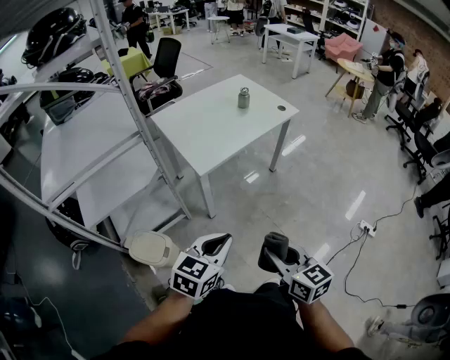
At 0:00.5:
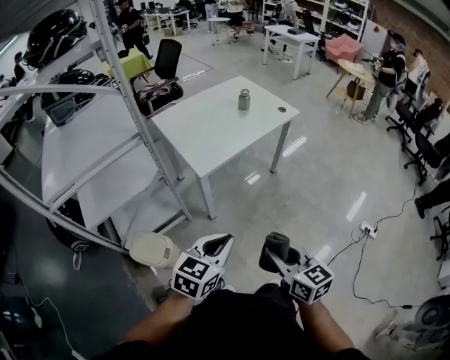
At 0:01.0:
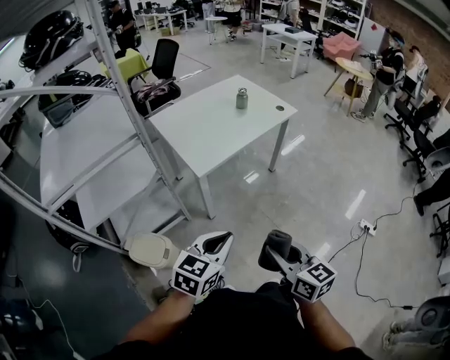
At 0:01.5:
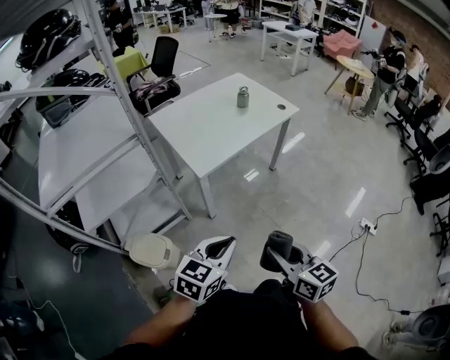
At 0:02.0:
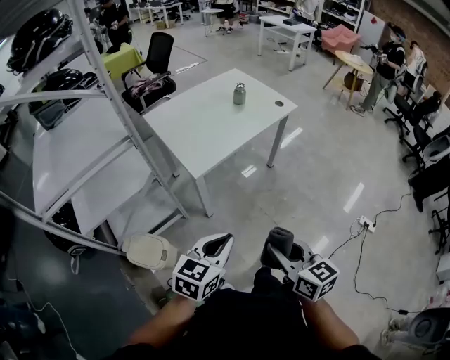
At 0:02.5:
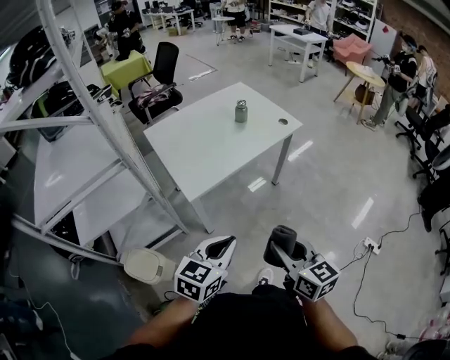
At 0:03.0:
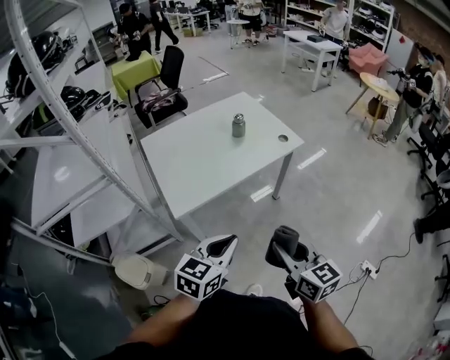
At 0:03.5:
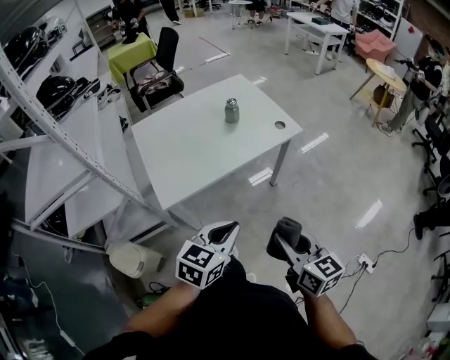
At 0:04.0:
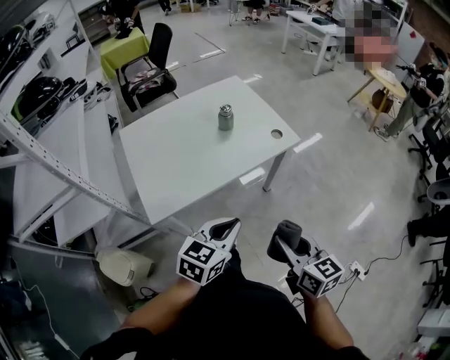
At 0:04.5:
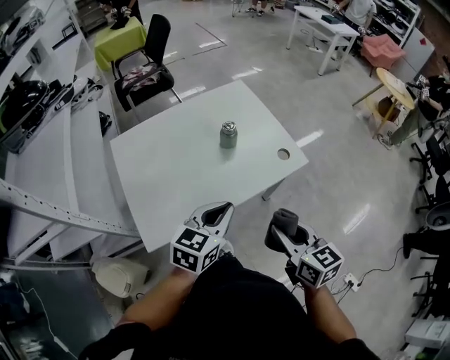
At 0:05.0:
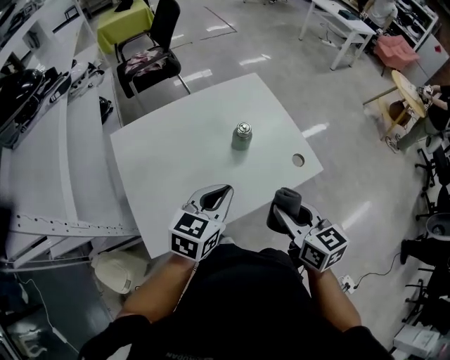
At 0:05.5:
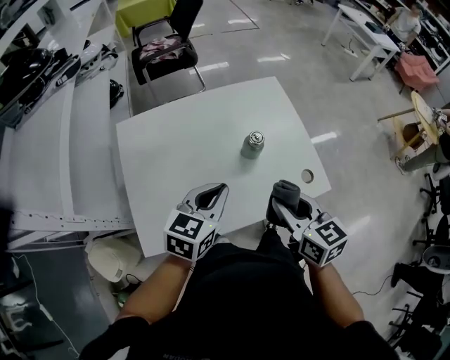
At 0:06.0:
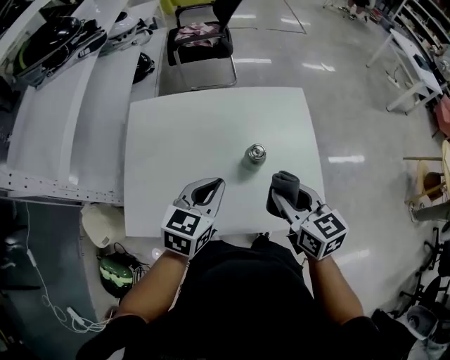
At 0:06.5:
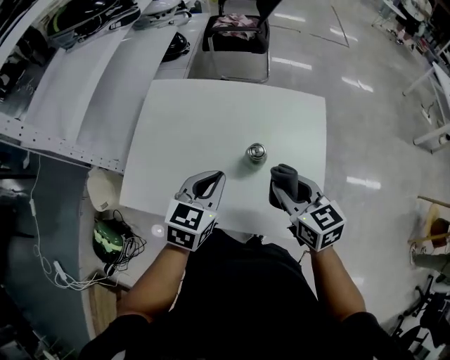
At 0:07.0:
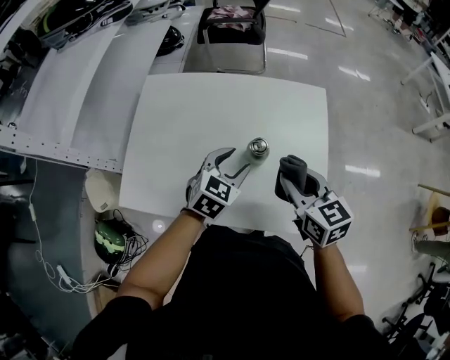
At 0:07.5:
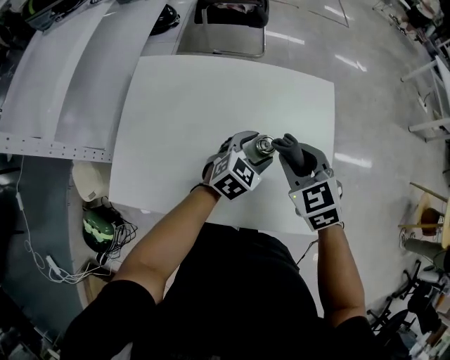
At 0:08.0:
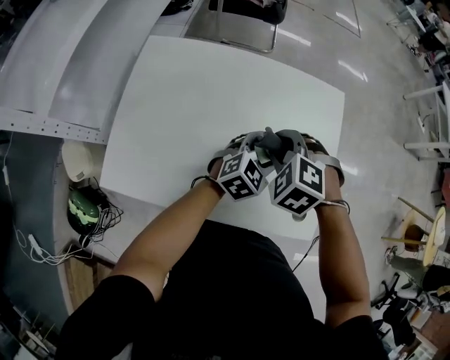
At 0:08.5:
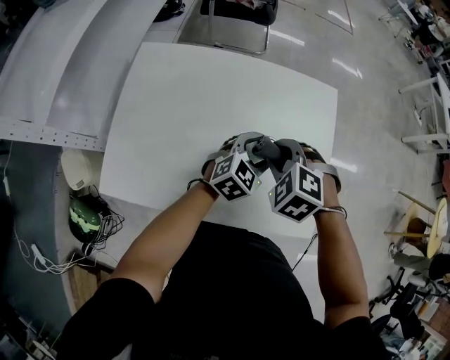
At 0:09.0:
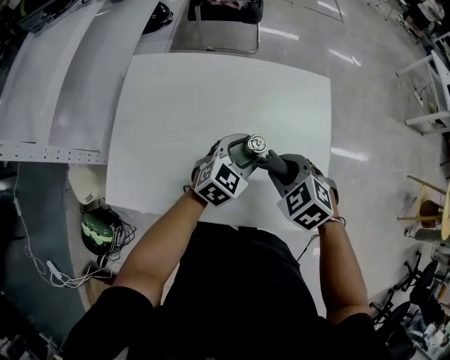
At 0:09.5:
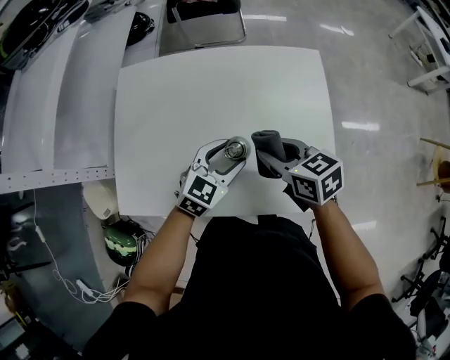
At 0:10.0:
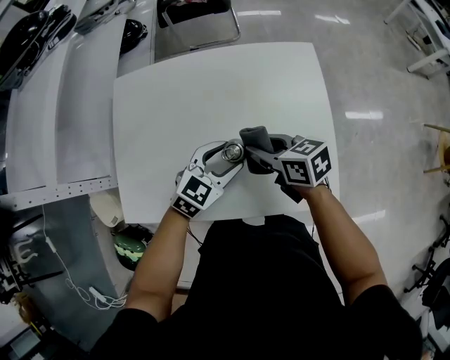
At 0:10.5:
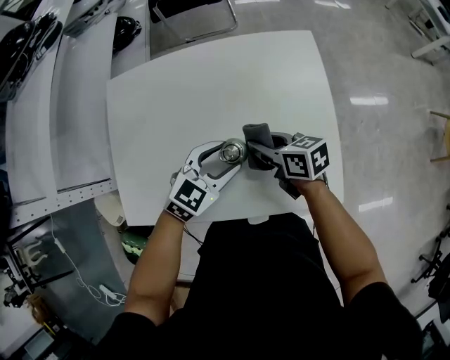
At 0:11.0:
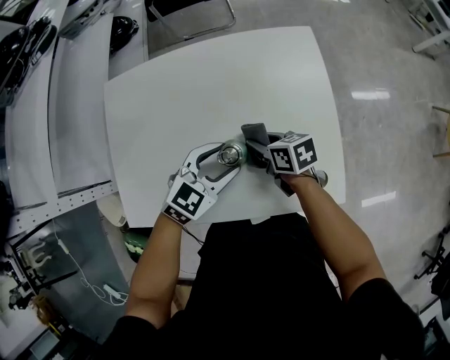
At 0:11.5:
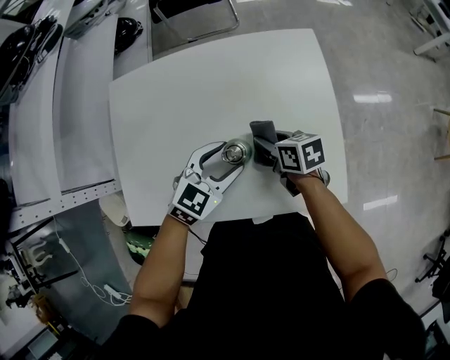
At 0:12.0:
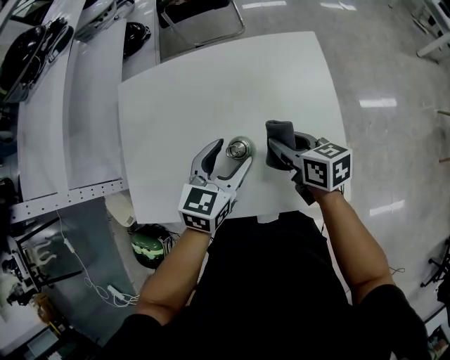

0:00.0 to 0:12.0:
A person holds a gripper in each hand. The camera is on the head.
0:00.0 to 0:02.0: The grippers make only small movements.
0:02.0 to 0:04.0: The grippers both shift forward and to the right by approximately 40 cm.
0:04.0 to 0:06.0: The right gripper moves approximately 50 cm, and swivels roughly 30 degrees. The left gripper moves approximately 40 cm, and changes its angle by about 30 degrees.
0:06.0 to 0:08.0: The right gripper goes approximately 15 cm forward, downward and to the left, and twists some 70 degrees counterclockwise, seen from behind, while the left gripper travels downward, to the right and forward by about 20 cm, and opens.
0:08.0 to 0:10.0: The right gripper twists some 70 degrees clockwise, seen from behind; the left gripper shifts approximately 10 cm to the left and backward.
0:10.0 to 0:12.0: The right gripper goes some 5 cm to the right, and goes downward and returns, roughly 10 cm each way; the left gripper swivels approximately 20 degrees.

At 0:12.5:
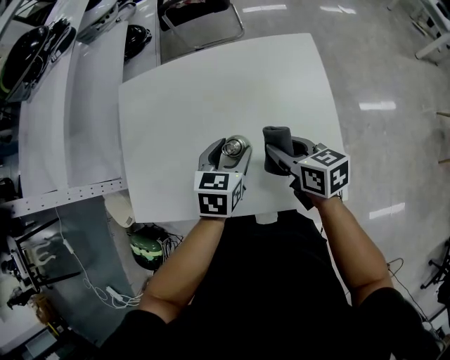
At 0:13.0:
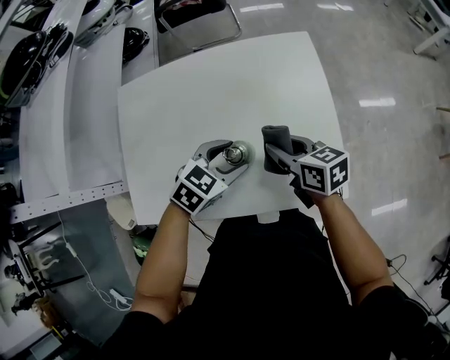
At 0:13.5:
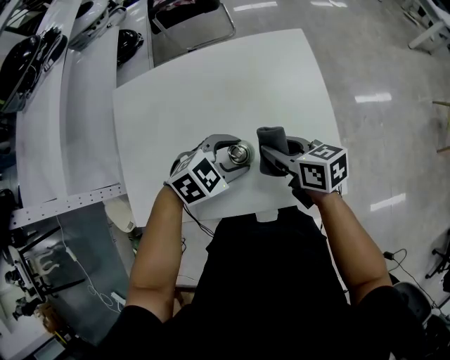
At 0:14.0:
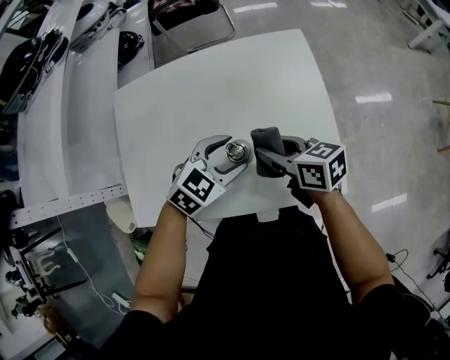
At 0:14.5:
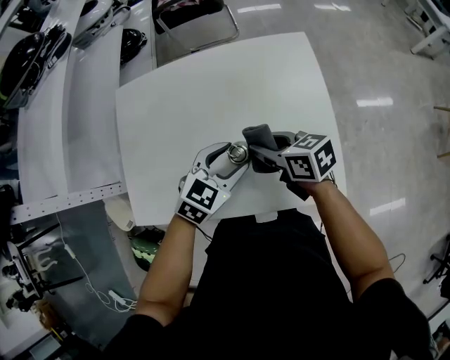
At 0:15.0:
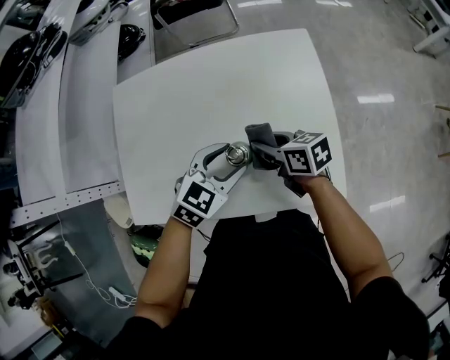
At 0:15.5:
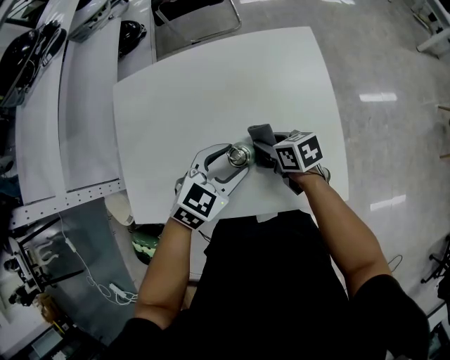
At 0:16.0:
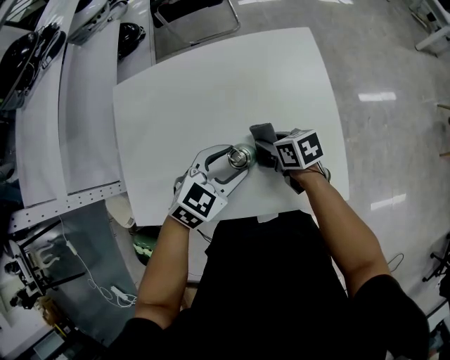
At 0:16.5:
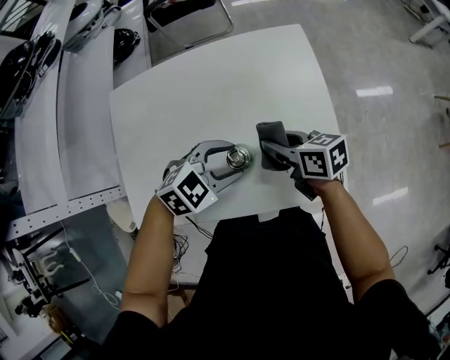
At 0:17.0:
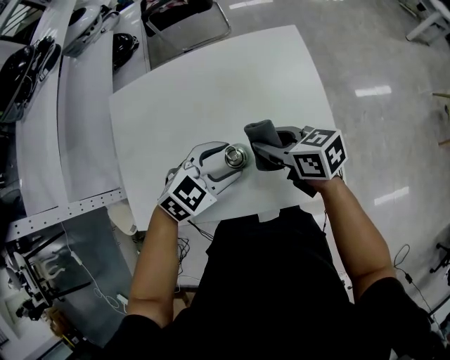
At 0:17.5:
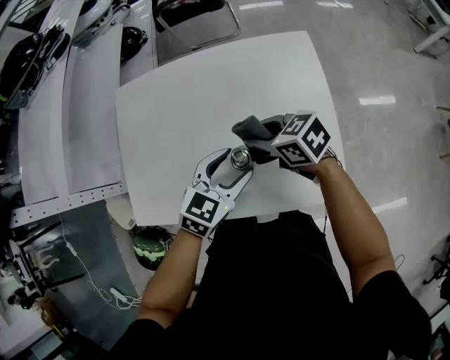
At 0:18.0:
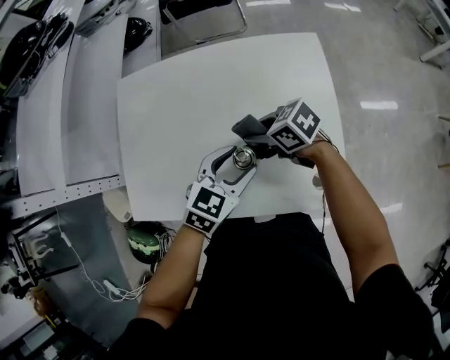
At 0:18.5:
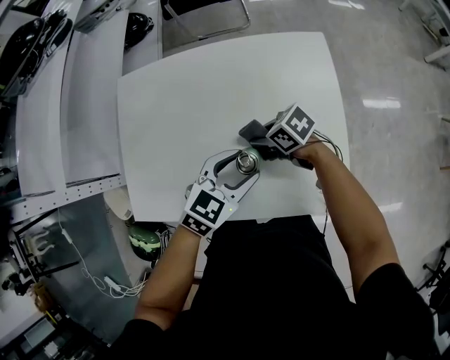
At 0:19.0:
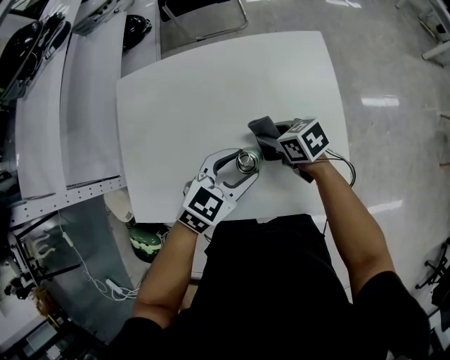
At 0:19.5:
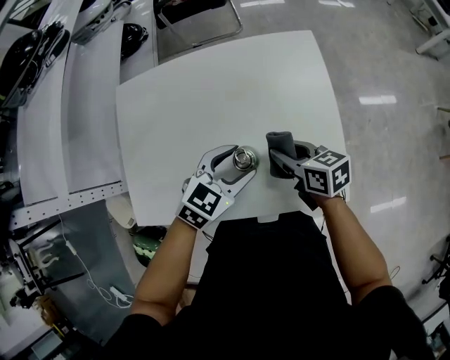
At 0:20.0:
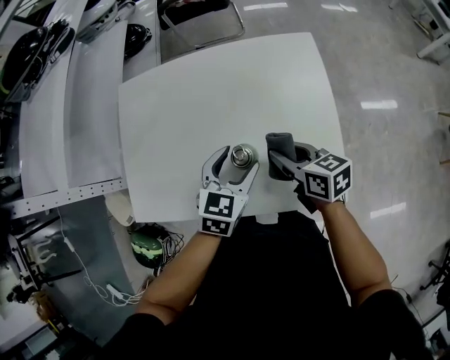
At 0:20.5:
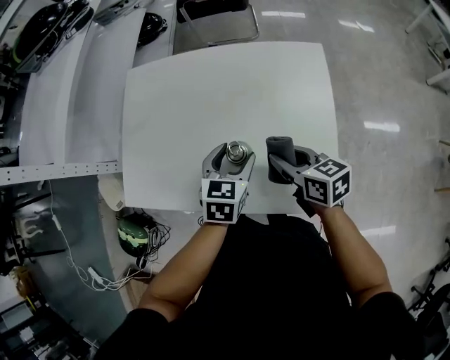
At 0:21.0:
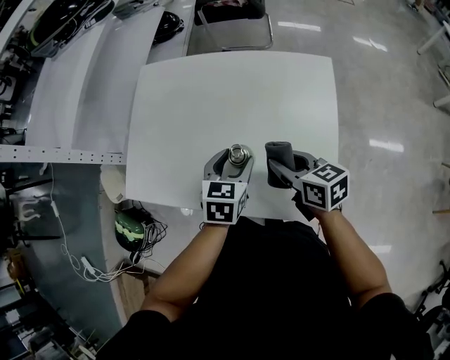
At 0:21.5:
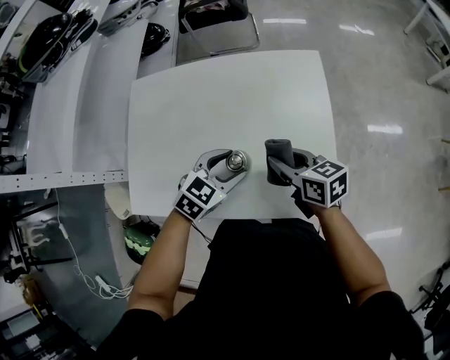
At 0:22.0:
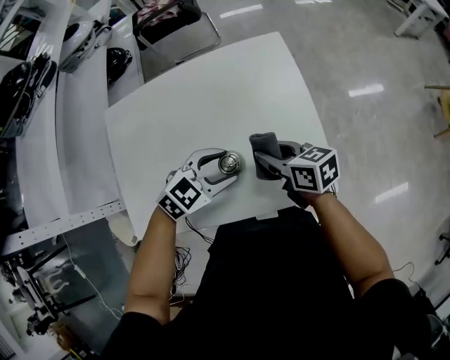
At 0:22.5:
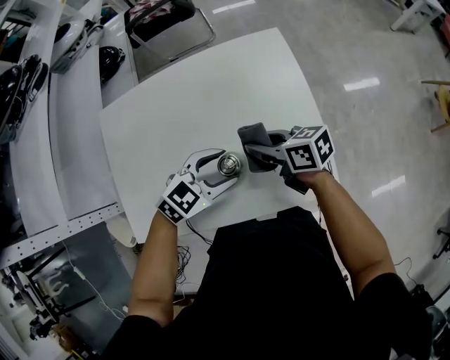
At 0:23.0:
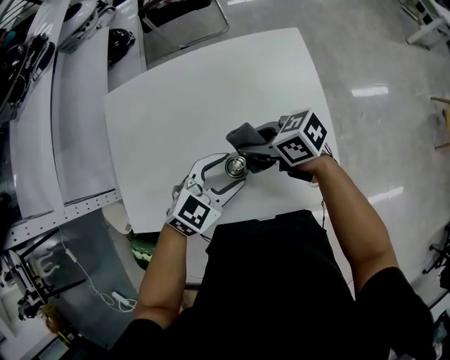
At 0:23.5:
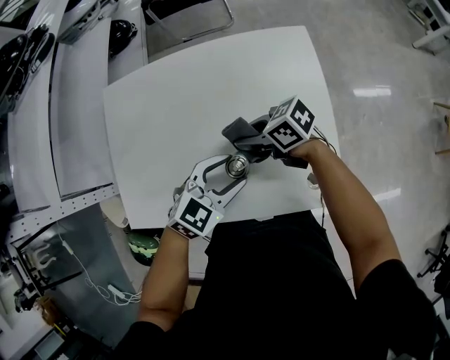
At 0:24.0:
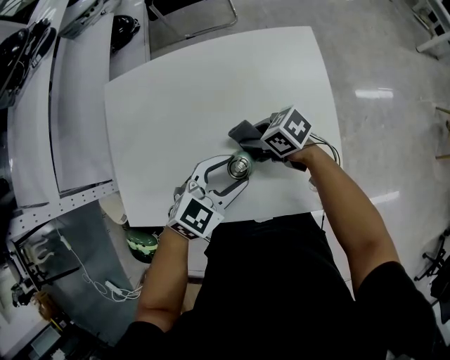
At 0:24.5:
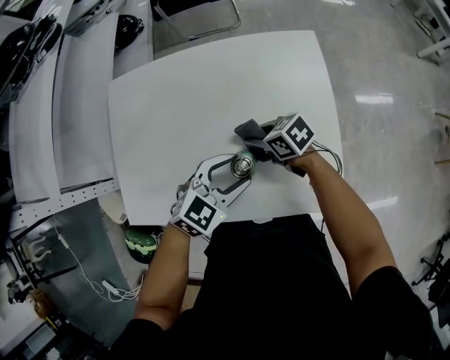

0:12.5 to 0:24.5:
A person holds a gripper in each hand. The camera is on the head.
0:12.5 to 0:14.5: The left gripper turns by roughly 30 degrees.
0:14.5 to 0:16.5: The left gripper rotates some 30 degrees, while the right gripper travels downward and back again, roughly 10 cm each way.
0:16.5 to 0:18.5: The left gripper turns by about 30 degrees. Meanwhile the right gripper is displaced downward by approximately 10 cm, and swivels some 40 degrees.
0:18.5 to 0:20.5: The left gripper changes its angle by some 30 degrees. The right gripper ends up roughly 15 cm from where it was, and swivels approximately 30 degrees.
0:20.5 to 0:22.5: The left gripper turns by roughly 60 degrees.
0:22.5 to 0:24.5: The right gripper travels downward by approximately 10 cm, and turns by about 30 degrees.

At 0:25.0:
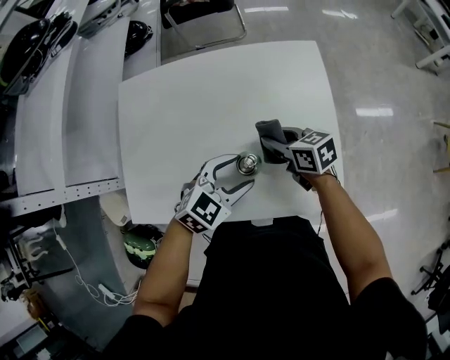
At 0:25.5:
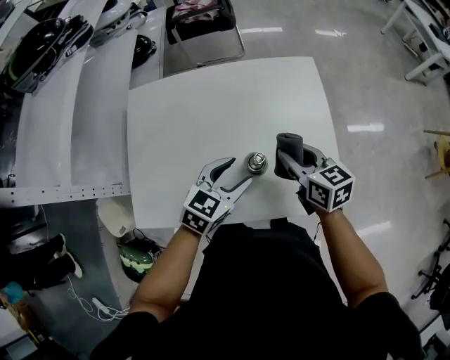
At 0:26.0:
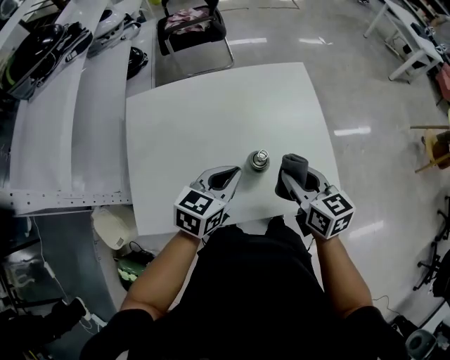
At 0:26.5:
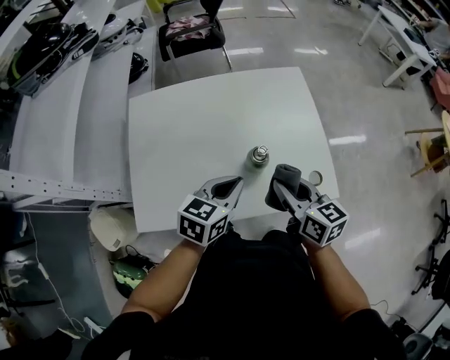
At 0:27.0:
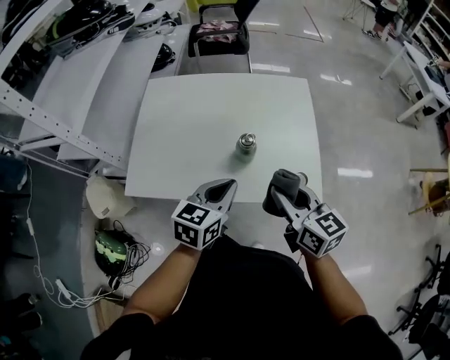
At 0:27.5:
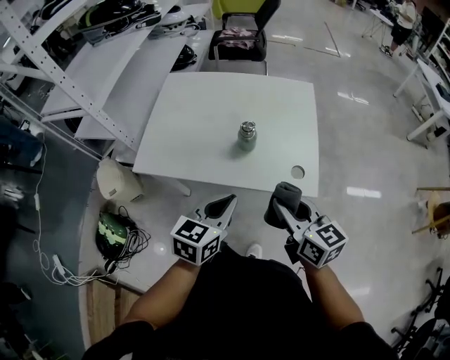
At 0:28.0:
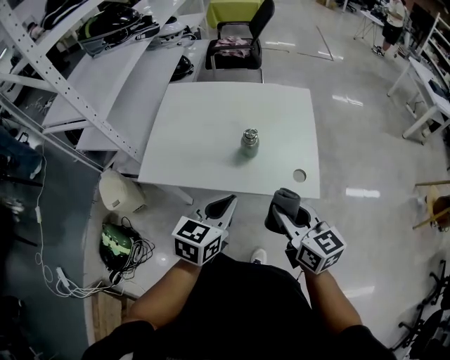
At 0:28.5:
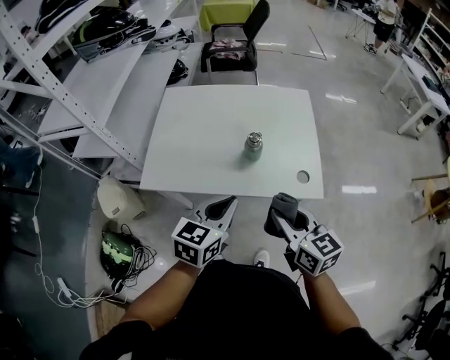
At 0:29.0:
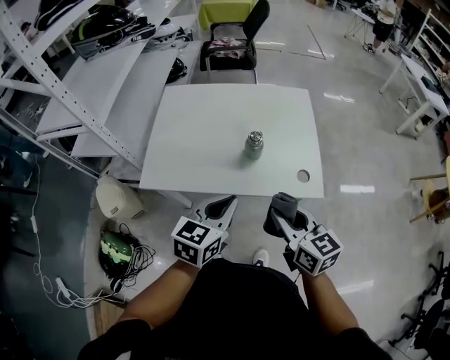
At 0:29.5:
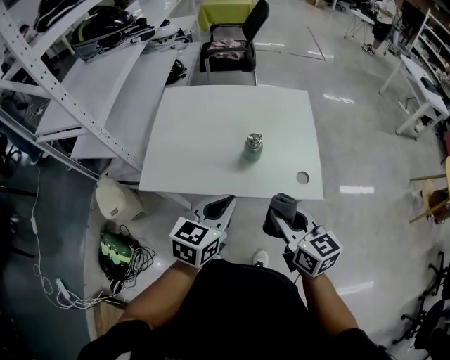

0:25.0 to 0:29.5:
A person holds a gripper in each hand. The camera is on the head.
0:25.0 to 0:27.0: The right gripper travels backward and upward by approximately 30 cm, and rotates approximately 30 degrees, while the left gripper travels backward and upward by some 15 cm, changes its angle by some 40 degrees, and closes.
0:27.0 to 0:29.5: The left gripper goes about 10 cm backward and upward, while the right gripper is displaced backward by roughly 10 cm.
